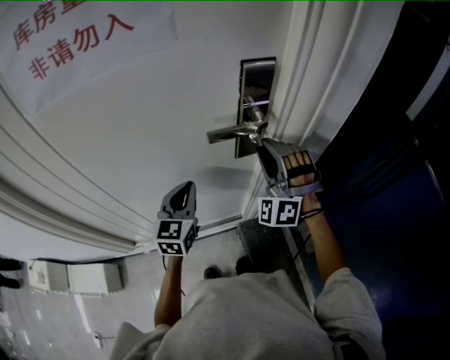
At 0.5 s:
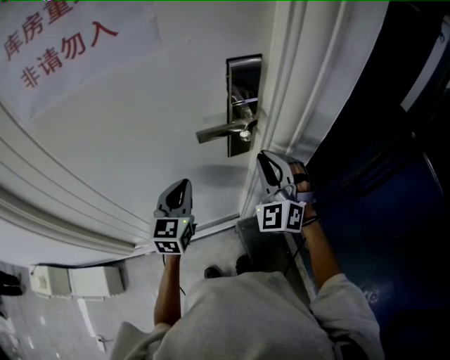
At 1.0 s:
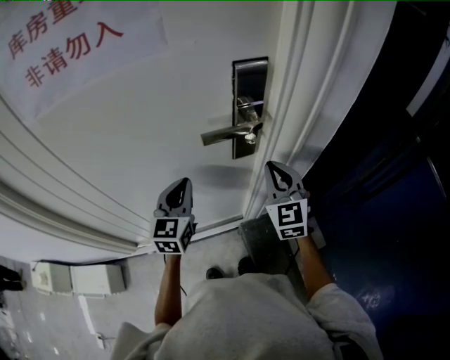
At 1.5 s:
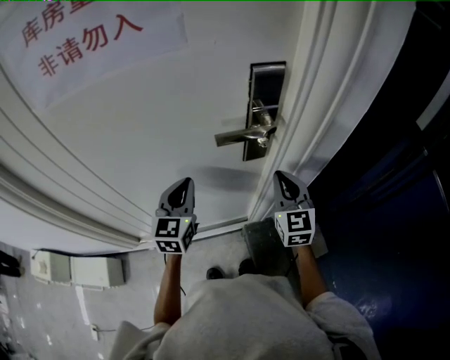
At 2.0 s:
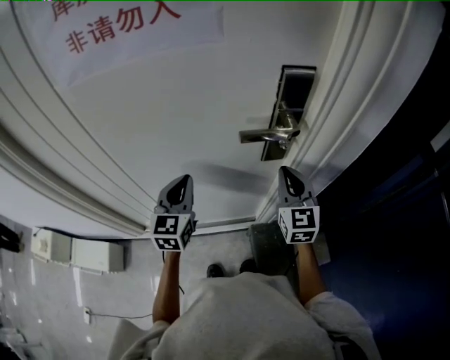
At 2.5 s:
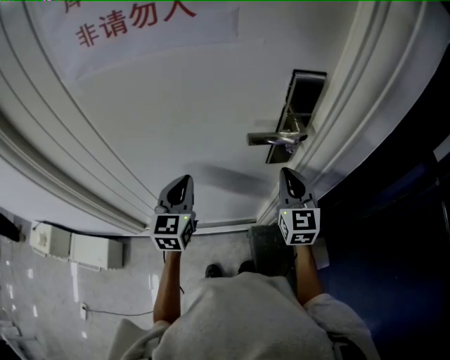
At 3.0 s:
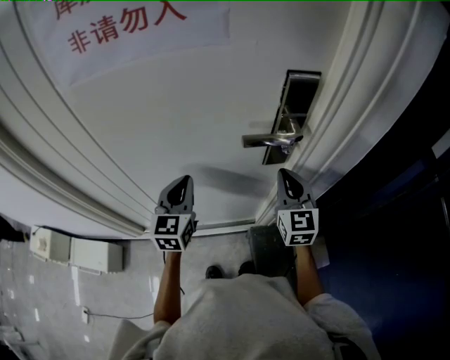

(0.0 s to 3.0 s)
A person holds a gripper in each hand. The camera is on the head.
0.0 s - 1.5 s: The right gripper heads downward, covering roughly 5 cm, rotates around the line of its fingers by approximately 70 degrees, clockwise from behind, and closes.
1.5 s - 3.0 s: The left gripper travels to the left by about 5 cm.

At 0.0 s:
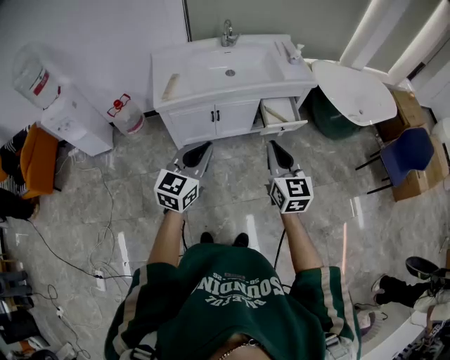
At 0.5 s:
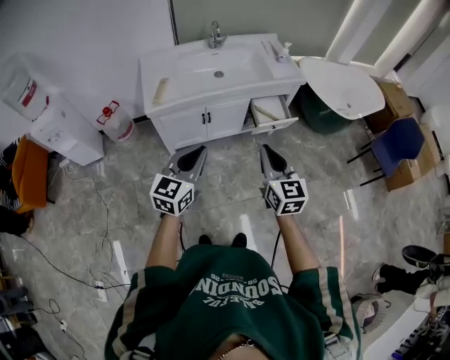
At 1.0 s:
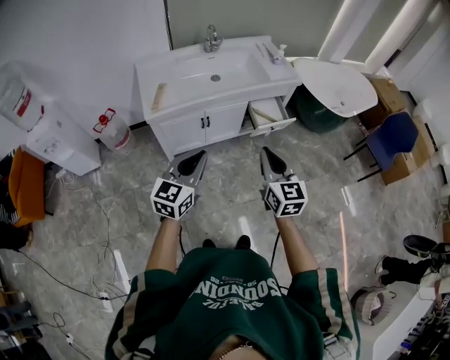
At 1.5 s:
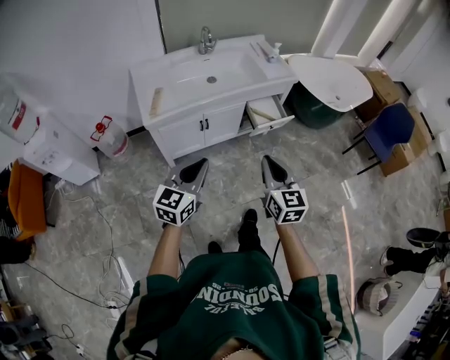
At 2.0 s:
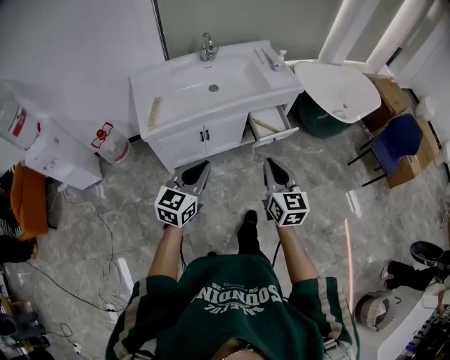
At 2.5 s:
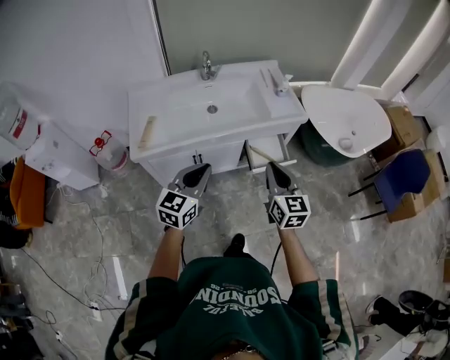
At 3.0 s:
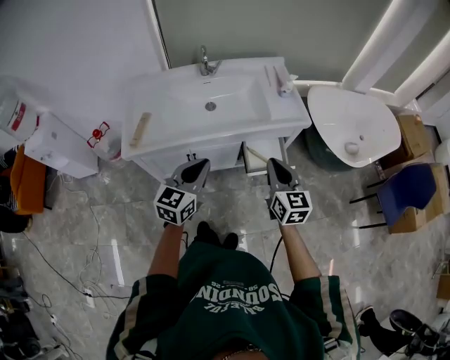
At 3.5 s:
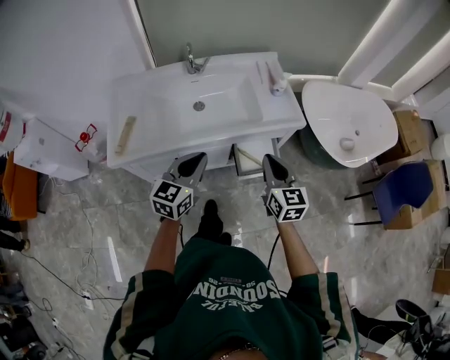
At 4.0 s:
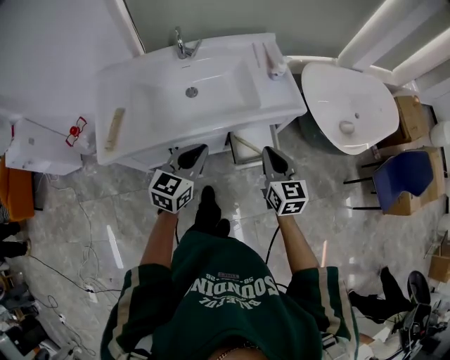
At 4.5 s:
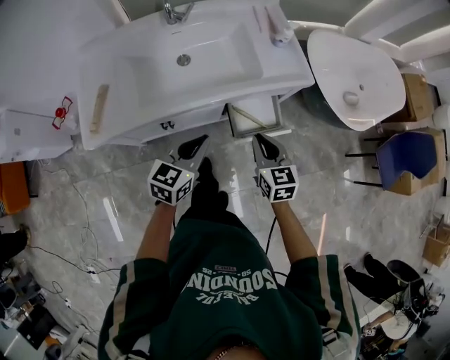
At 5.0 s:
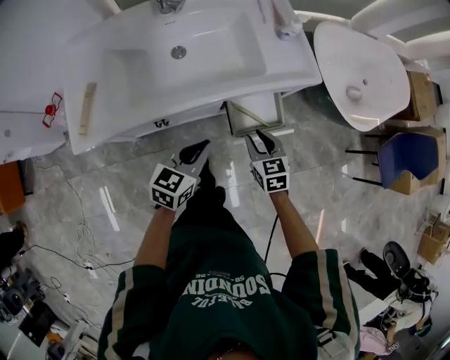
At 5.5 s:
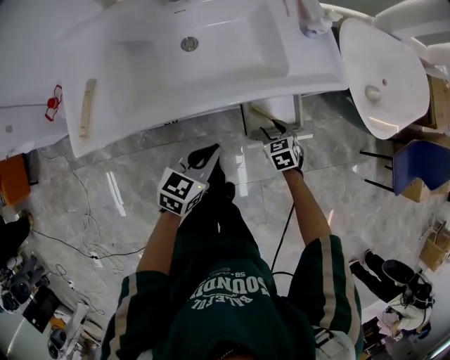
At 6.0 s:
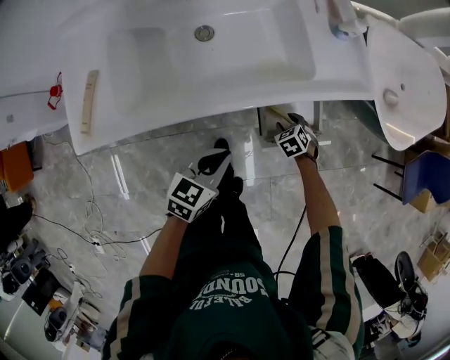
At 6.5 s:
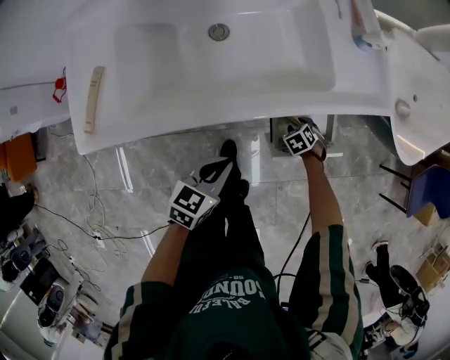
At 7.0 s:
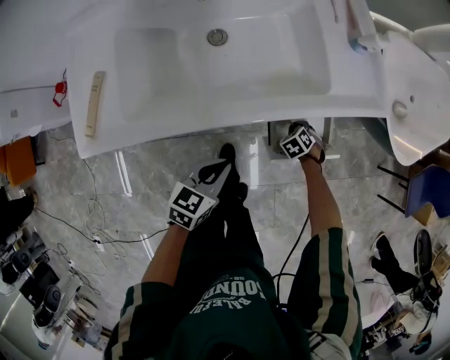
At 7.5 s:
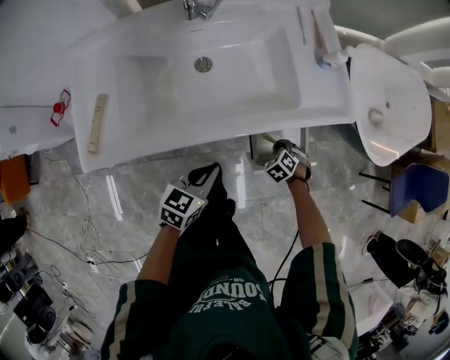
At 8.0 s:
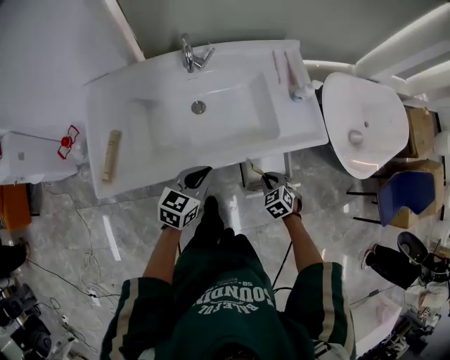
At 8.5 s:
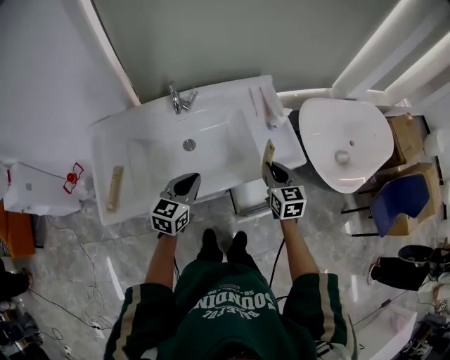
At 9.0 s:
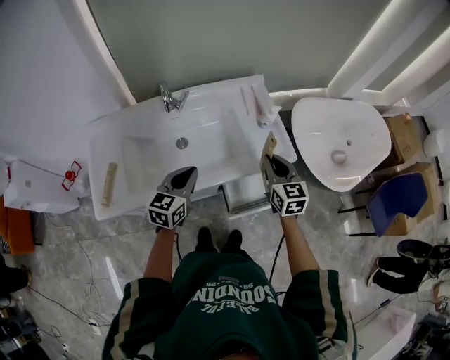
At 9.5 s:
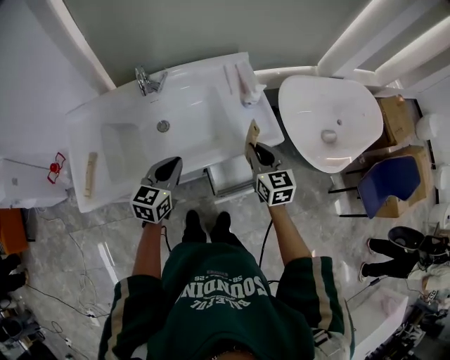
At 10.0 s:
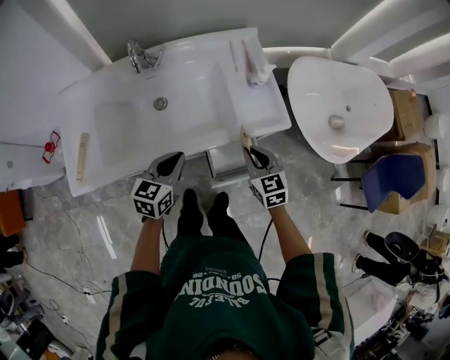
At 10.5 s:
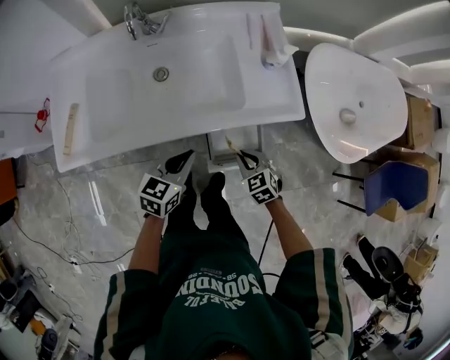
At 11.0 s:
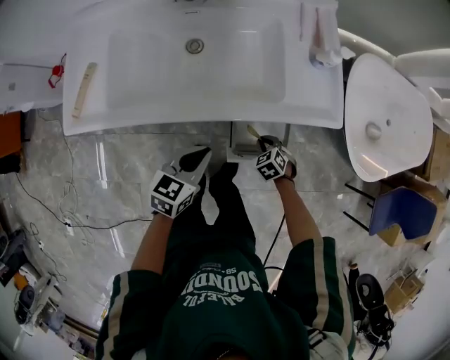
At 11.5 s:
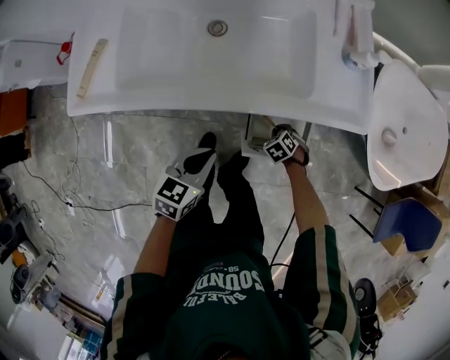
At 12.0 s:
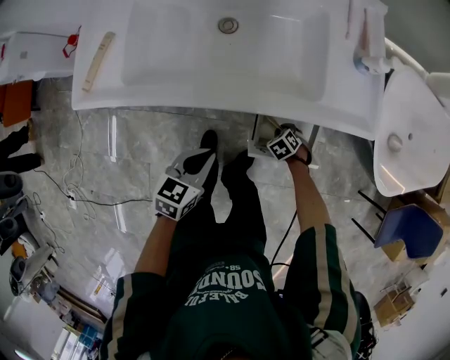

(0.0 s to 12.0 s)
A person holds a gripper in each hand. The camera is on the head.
0.0 s - 2.0 s: The right gripper shifts by roughly 5 cm; the left gripper travels forward by about 5 cm.
2.0 s - 4.0 s: The right gripper moves forward, about 35 cm; the left gripper is displaced forward and to the right by roughly 35 cm.
4.0 s - 6.0 s: The right gripper moves downward, roughly 50 cm, angles its fingers downward, by approximately 50 degrees, and opens up. The left gripper is displaced downward by some 25 cm, and swivels approximately 20 degrees.
6.0 s - 8.0 s: The left gripper heads upward, covering some 10 cm. The right gripper travels upward by approximately 20 cm, and closes its fingers.
8.0 s - 10.0 s: The left gripper heads to the right, covering roughly 5 cm, and travels upward and back again, approximately 10 cm each way, while the right gripper moves upward, forward and to the right, roughly 20 cm, and rotates approximately 40 degrees.
10.0 s - 12.0 s: The right gripper heads downward, covering about 40 cm, and points its fingers some 50 degrees further downward, while the left gripper shifts approximately 15 cm downward.

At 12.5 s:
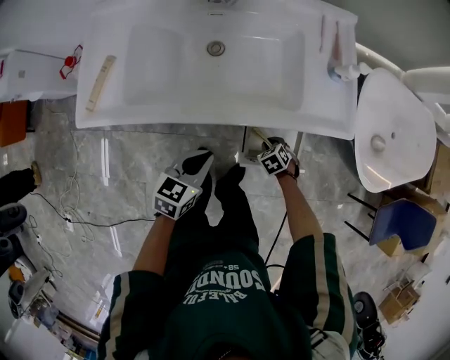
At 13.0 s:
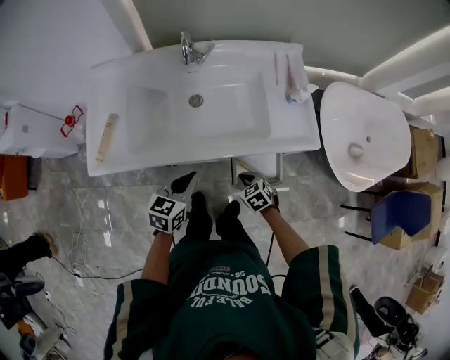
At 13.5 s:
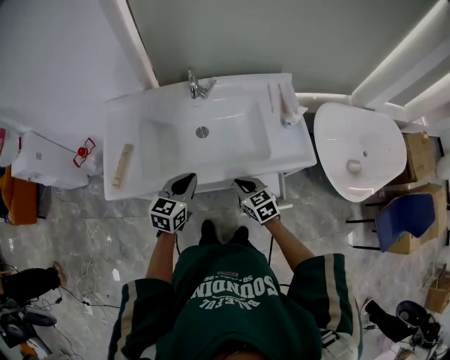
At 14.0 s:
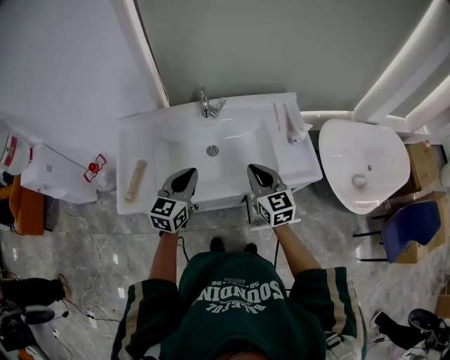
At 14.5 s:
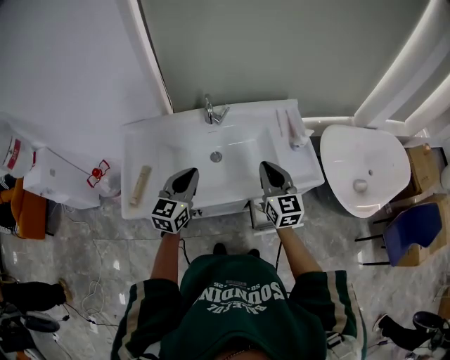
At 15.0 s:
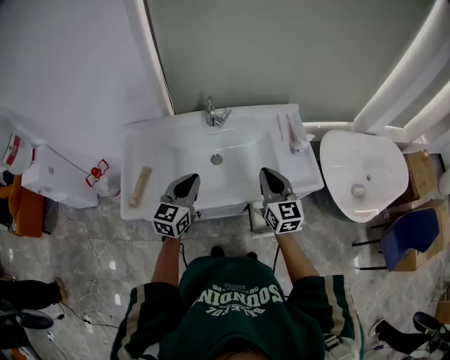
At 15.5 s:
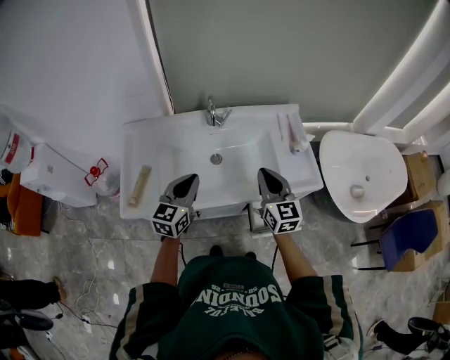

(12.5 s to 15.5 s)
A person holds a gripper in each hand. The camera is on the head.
12.5 s - 14.0 s: The left gripper goes approximately 20 cm upward, and turns by roughly 30 degrees. Meanwhile the right gripper goes roughly 50 cm upward, and tilts its fingers some 60 degrees upward.
14.0 s - 15.5 s: The grippers move only a little.

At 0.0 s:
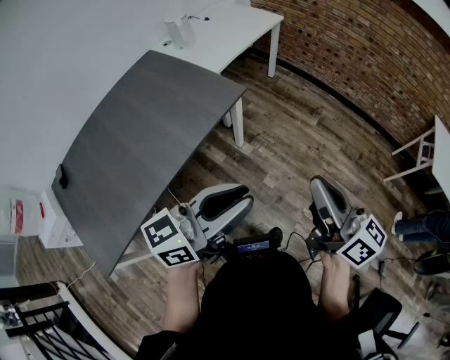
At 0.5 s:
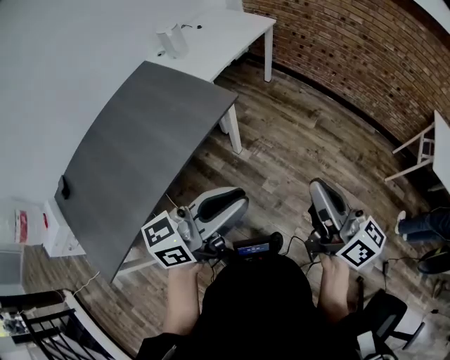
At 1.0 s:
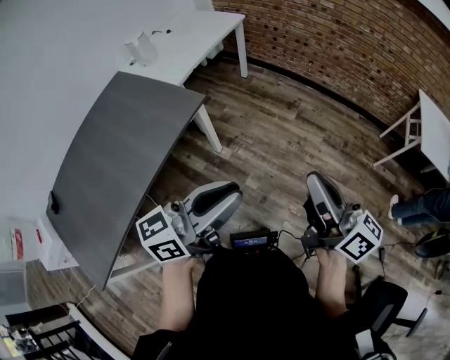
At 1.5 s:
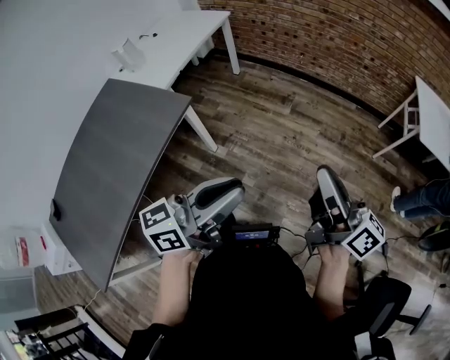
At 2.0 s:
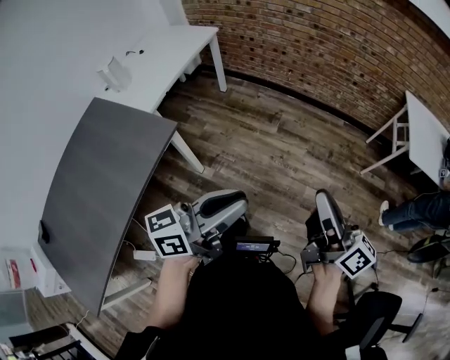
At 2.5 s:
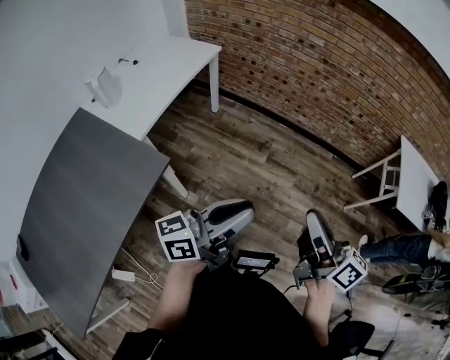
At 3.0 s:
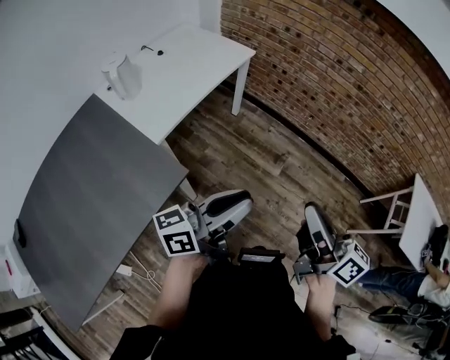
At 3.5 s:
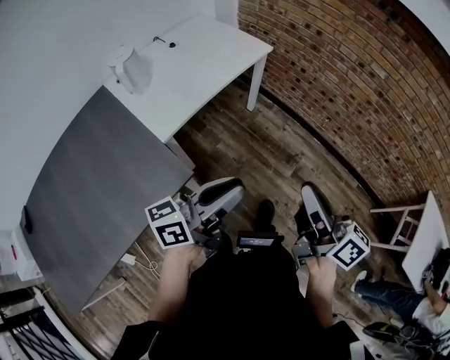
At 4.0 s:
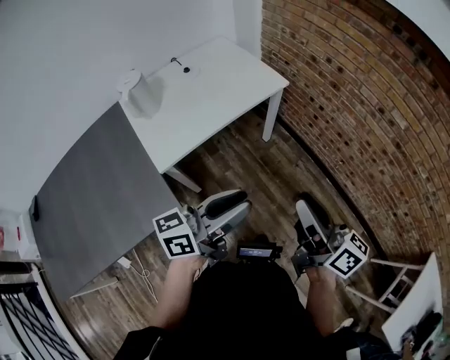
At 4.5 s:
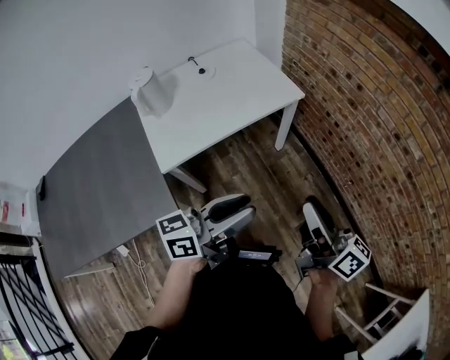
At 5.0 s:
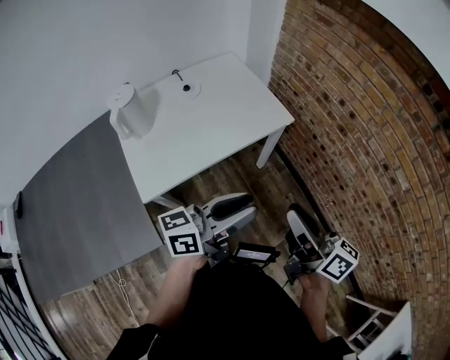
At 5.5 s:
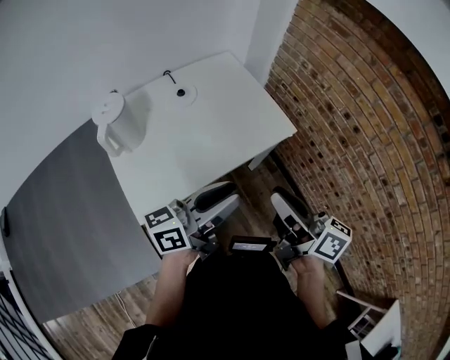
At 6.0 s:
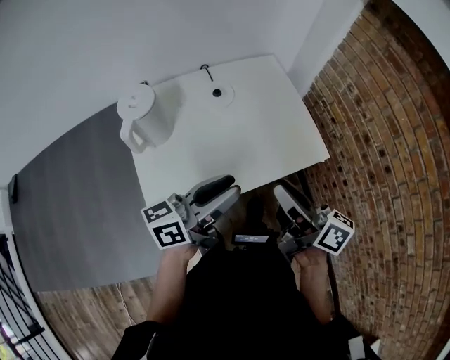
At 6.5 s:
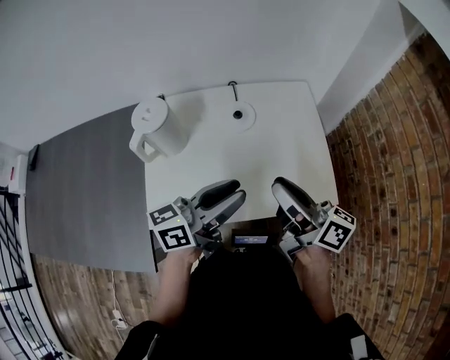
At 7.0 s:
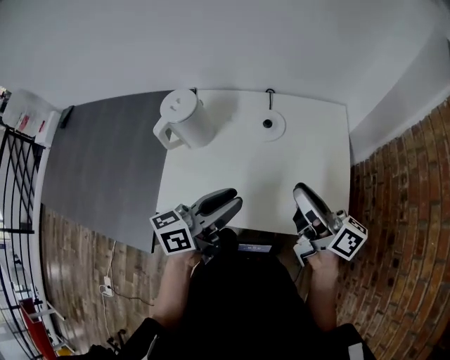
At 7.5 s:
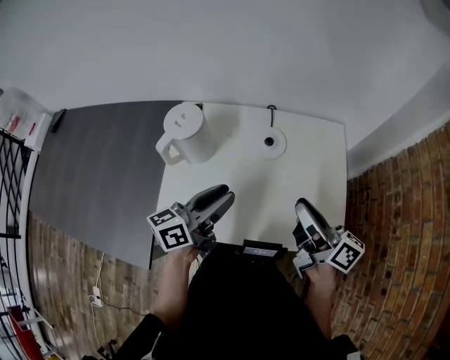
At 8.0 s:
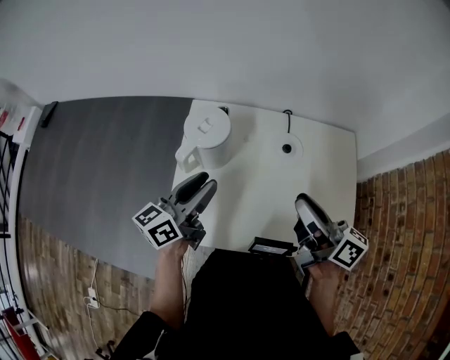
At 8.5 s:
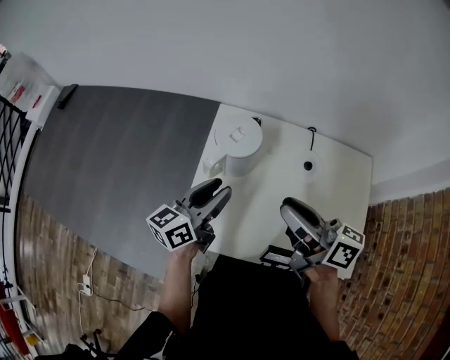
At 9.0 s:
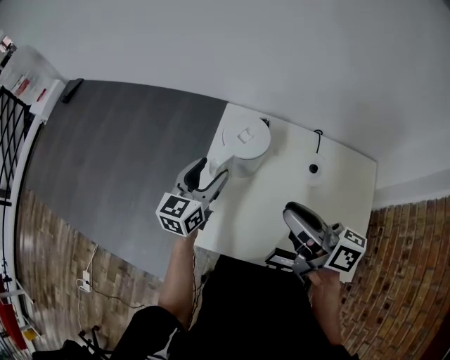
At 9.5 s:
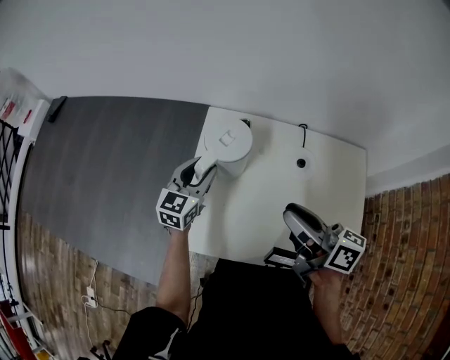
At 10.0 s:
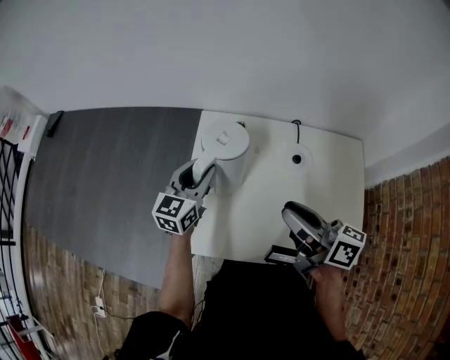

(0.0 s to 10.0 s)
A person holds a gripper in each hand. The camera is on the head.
0.0 s - 2.0 s: The grippers both shift to the right and forward by some 25 cm. The left gripper changes its angle by approximately 20 degrees. The right gripper turns by roughly 20 degrees.
2.0 s - 4.0 s: The pair of grippers is taken approximately 50 cm. The left gripper swivels some 30 degrees, while the right gripper changes its angle by about 30 degrees.
4.0 s - 6.0 s: Both grippers travel together forward and to the left, approximately 40 cm. The left gripper turns by approximately 20 degrees, while the right gripper changes its angle by approximately 30 degrees.
6.0 s - 8.0 s: The left gripper shifts by about 25 cm, and rotates roughly 40 degrees; the right gripper ends up approximately 20 cm from where it was, and changes its angle by approximately 30 degrees.
8.0 s - 10.0 s: The left gripper is displaced forward by roughly 10 cm, and turns by approximately 30 degrees. Meanwhile the right gripper moves to the left, about 5 cm.
